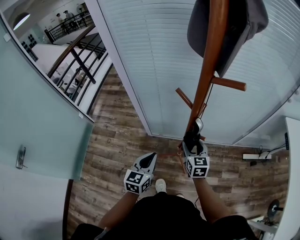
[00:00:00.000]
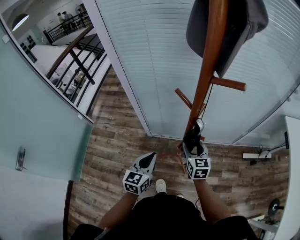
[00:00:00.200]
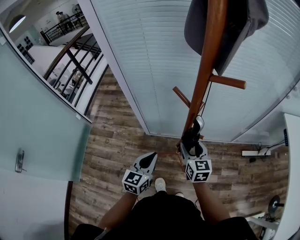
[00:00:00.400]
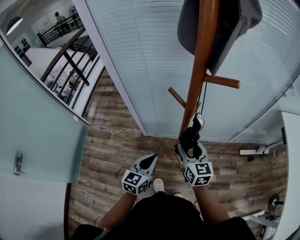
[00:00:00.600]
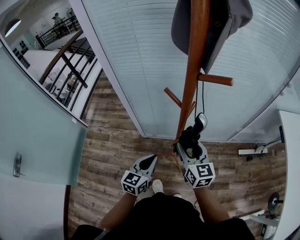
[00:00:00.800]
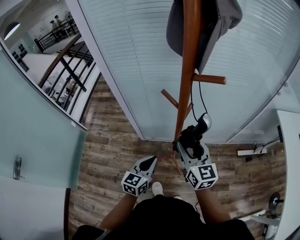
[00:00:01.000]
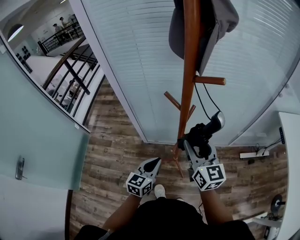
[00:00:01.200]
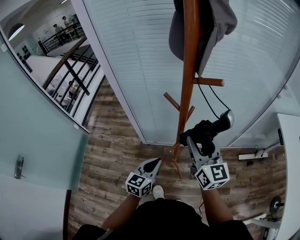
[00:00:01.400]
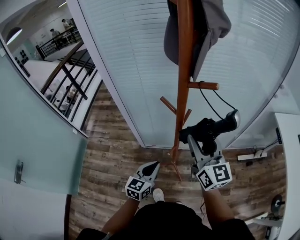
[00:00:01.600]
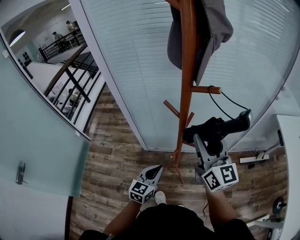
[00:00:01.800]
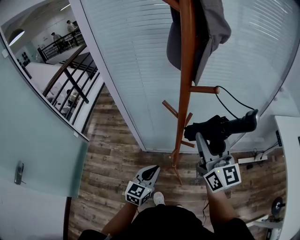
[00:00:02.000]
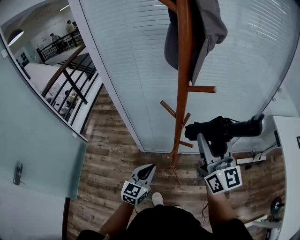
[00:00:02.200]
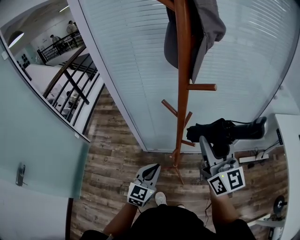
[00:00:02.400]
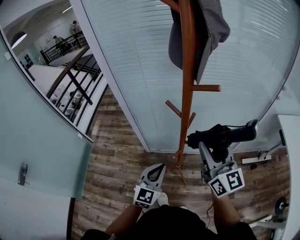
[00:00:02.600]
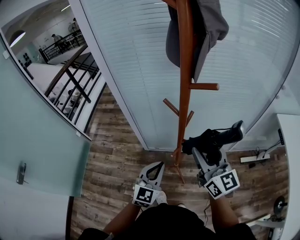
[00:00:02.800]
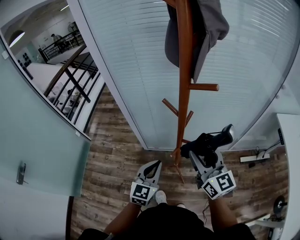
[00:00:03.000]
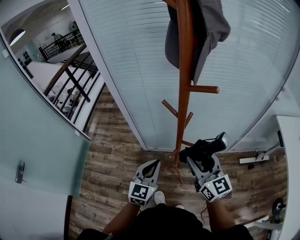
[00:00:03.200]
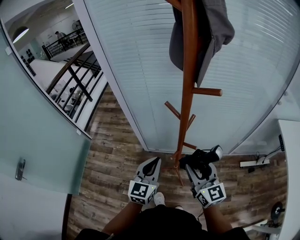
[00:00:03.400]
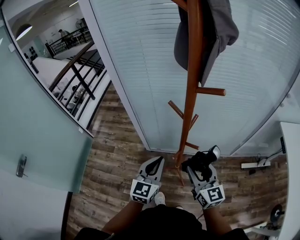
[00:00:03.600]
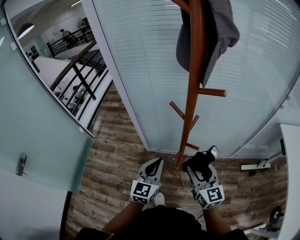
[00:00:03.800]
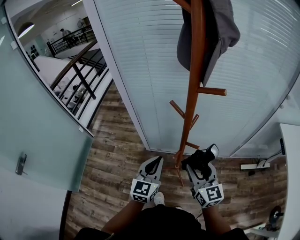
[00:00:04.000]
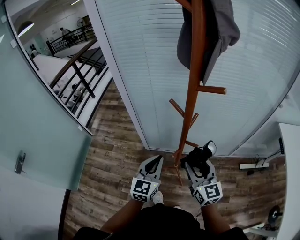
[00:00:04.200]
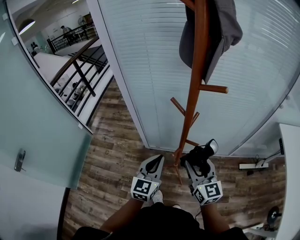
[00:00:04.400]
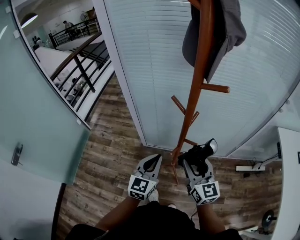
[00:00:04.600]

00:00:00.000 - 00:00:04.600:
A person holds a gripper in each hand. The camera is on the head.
00:00:00.000 - 00:00:01.600: The left gripper moves to the right, approximately 5 cm; the right gripper heads upward, covering some 25 cm, and tips its fingers upward by roughly 30 degrees.
00:00:01.600 - 00:00:03.000: The right gripper moves roughly 5 cm upward and comes back. The left gripper travels upward by about 5 cm.
00:00:03.000 - 00:00:04.600: The right gripper moves downward, about 5 cm.

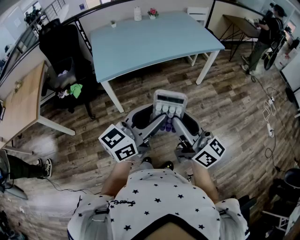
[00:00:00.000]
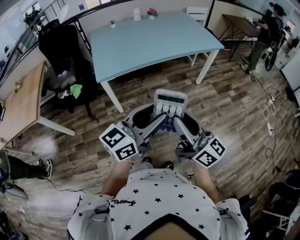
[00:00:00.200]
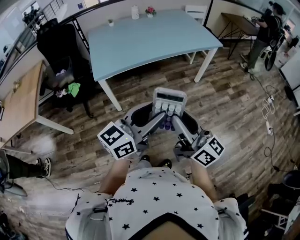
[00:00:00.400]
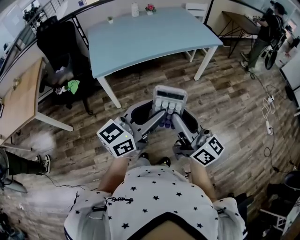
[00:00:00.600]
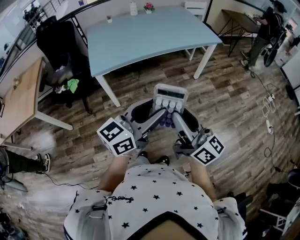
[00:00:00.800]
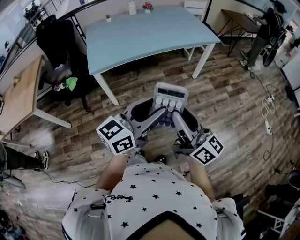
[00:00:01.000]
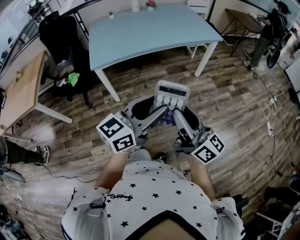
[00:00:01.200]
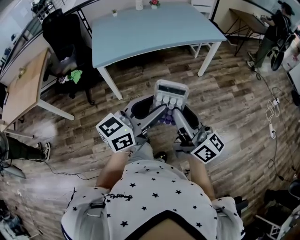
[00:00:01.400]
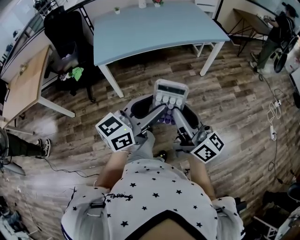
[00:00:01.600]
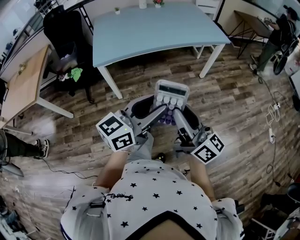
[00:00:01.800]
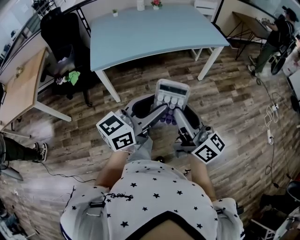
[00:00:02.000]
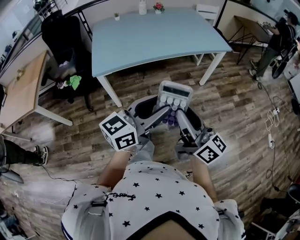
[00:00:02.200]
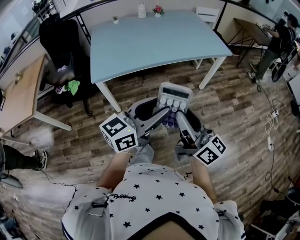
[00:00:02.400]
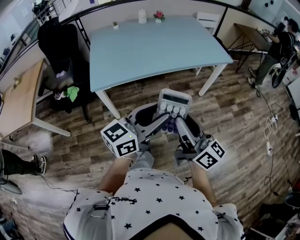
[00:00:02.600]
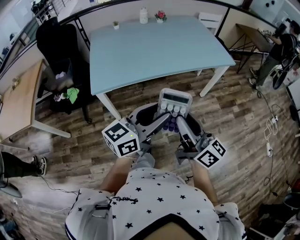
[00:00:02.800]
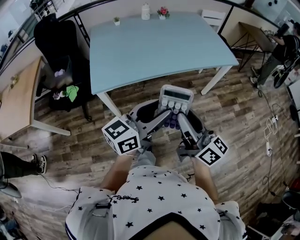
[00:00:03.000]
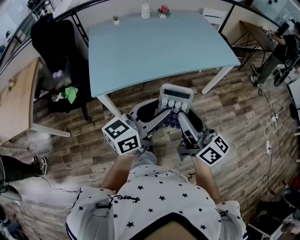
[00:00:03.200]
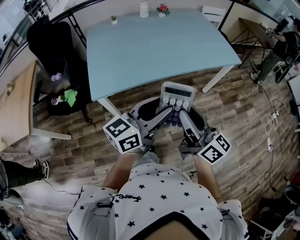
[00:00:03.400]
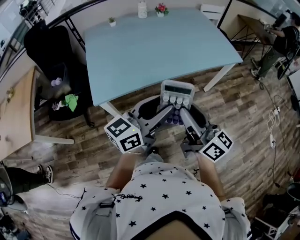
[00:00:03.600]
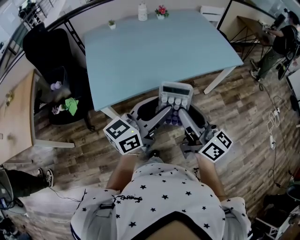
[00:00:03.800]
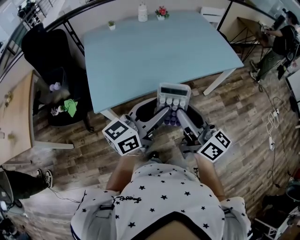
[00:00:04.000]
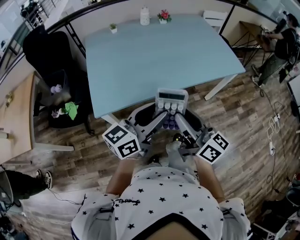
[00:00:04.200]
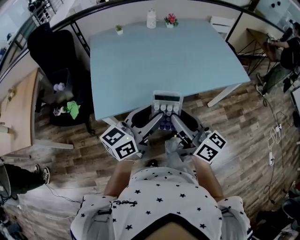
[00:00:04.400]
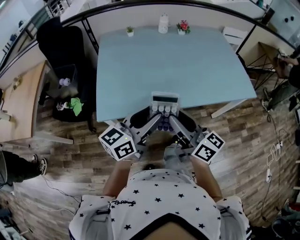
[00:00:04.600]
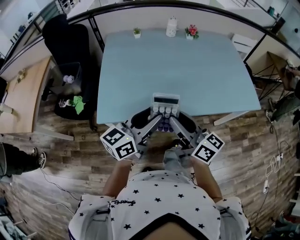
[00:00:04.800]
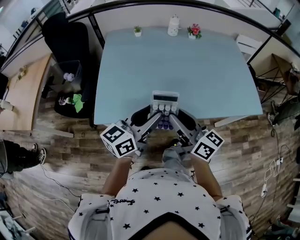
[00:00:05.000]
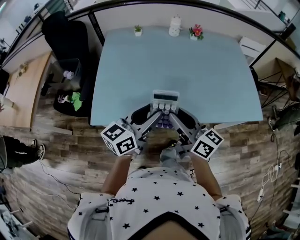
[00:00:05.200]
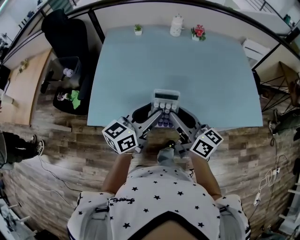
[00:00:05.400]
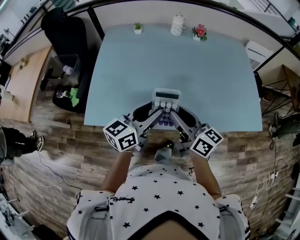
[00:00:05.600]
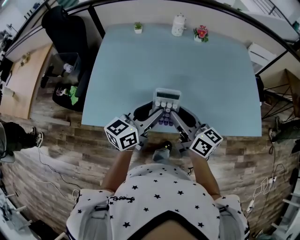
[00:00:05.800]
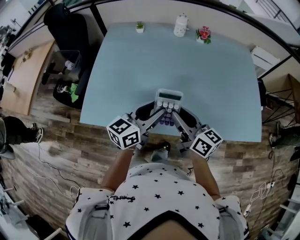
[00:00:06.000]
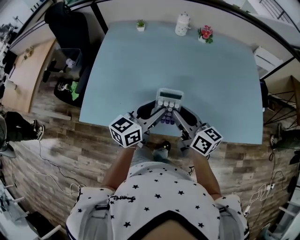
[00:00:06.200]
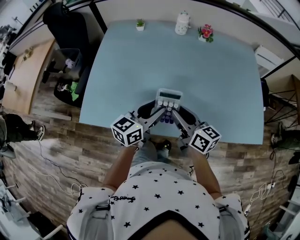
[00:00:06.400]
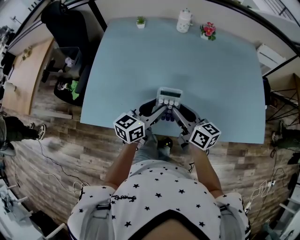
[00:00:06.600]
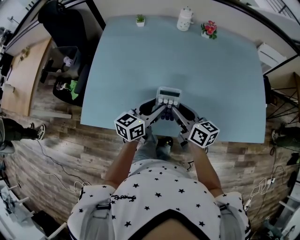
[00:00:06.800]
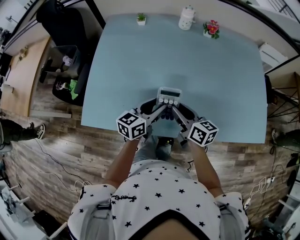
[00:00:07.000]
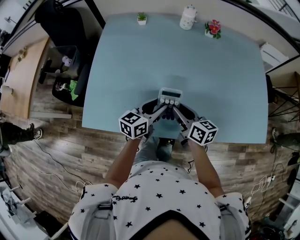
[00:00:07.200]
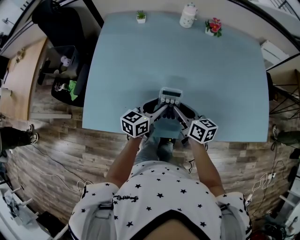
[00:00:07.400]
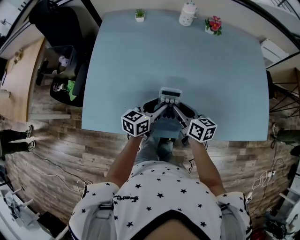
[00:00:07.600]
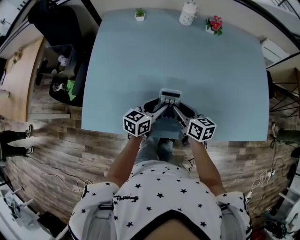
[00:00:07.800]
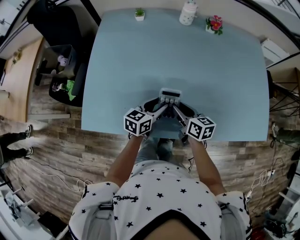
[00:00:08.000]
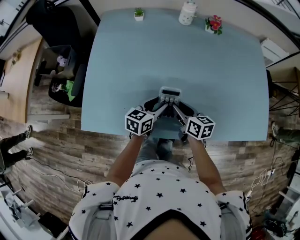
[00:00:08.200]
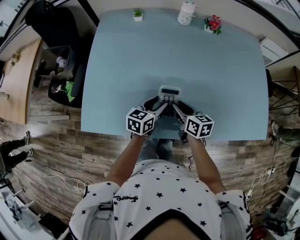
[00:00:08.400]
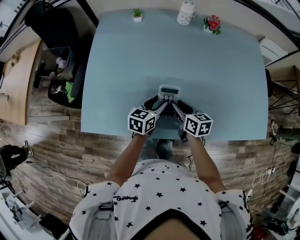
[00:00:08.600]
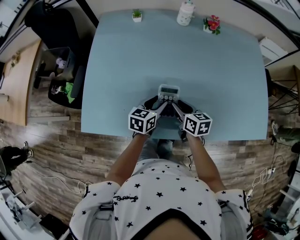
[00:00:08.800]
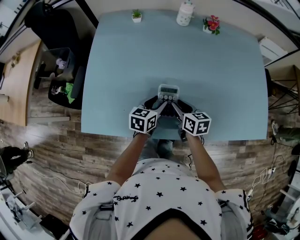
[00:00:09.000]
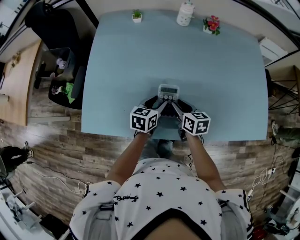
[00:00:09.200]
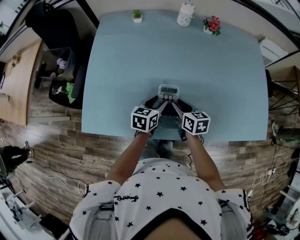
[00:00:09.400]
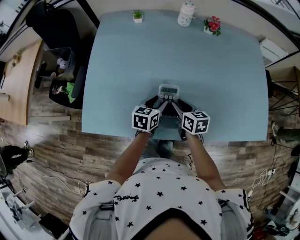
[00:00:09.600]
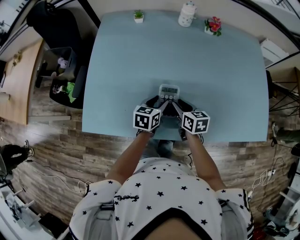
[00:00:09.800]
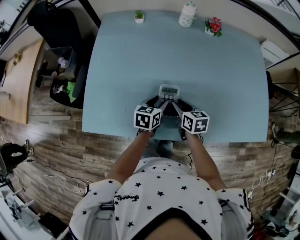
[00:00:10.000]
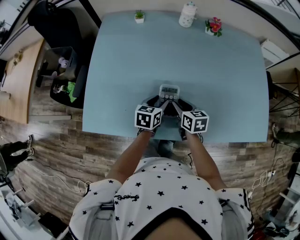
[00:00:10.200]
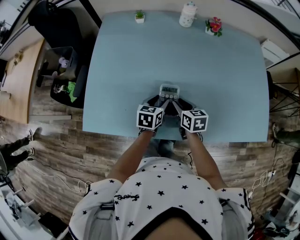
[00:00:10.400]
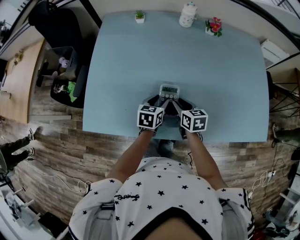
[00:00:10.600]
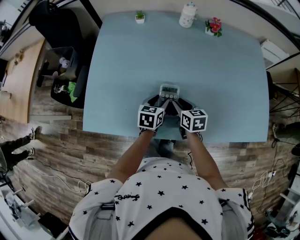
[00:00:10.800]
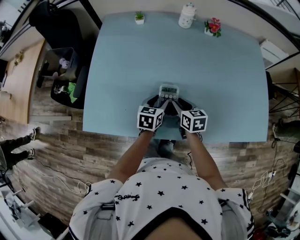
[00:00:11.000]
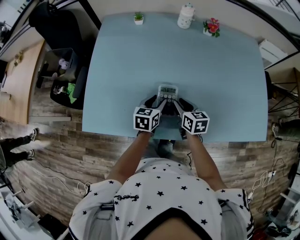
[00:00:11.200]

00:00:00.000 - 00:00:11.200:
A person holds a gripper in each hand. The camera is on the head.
00:00:00.000 - 00:00:01.600: Both grippers move to the right, approximately 5 cm.
00:00:01.600 - 00:00:03.200: The two grippers go approximately 20 cm forward and to the left.
00:00:03.200 - 00:00:04.800: The two grippers go roughly 25 cm forward and to the left.
00:00:04.800 - 00:00:06.400: The grippers both shift forward, to the right and downward by approximately 20 cm.
00:00:06.400 - 00:00:08.000: The two grippers go roughly 15 cm downward and forward. The right gripper turns by approximately 20 degrees.
00:00:08.000 - 00:00:09.600: There are only small adjustments of the grippers.
00:00:09.600 - 00:00:11.200: The grippers make only small movements.

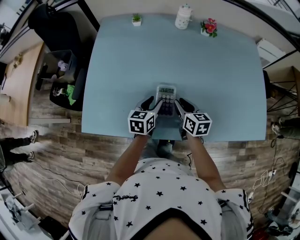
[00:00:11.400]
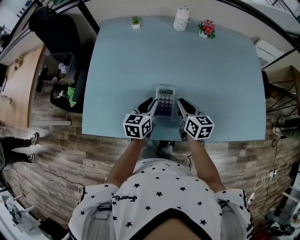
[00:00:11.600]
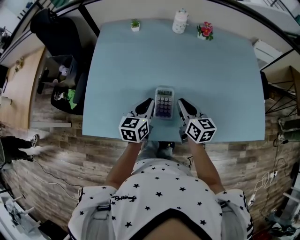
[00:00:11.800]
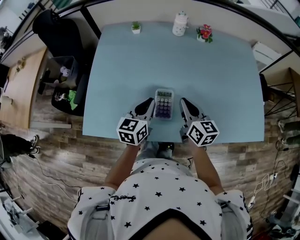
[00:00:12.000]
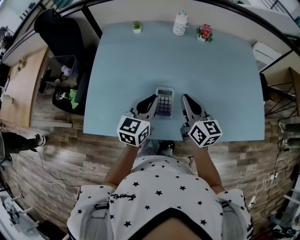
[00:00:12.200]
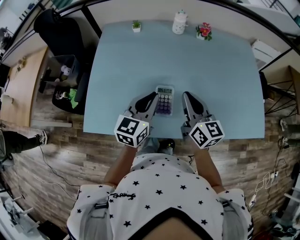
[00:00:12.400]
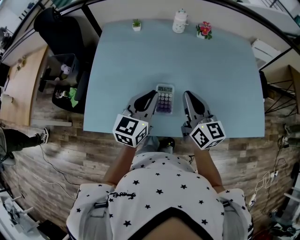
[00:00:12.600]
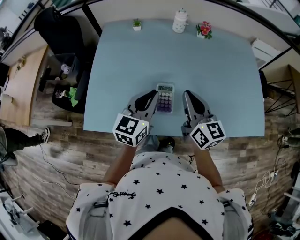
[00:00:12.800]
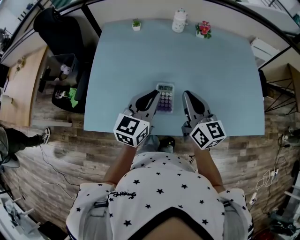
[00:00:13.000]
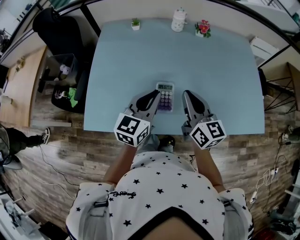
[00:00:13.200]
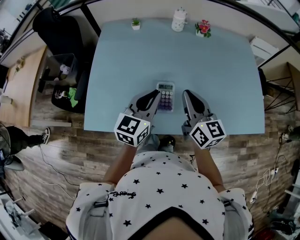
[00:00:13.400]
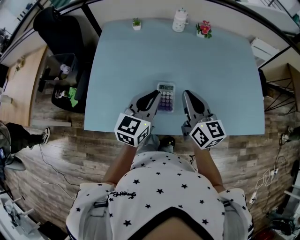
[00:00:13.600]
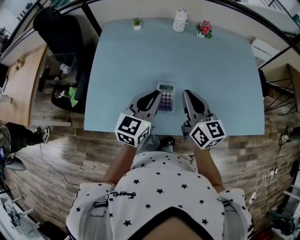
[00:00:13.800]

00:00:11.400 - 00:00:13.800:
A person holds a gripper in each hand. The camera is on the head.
00:00:11.400 - 00:00:12.600: Both grippers travel together upward, about 20 cm. The right gripper changes its angle by about 30 degrees, and closes up. Meanwhile the left gripper turns by approximately 30 degrees, and closes up.
00:00:12.600 - 00:00:13.800: Both grippers stay put.

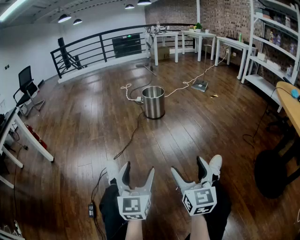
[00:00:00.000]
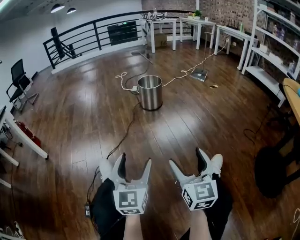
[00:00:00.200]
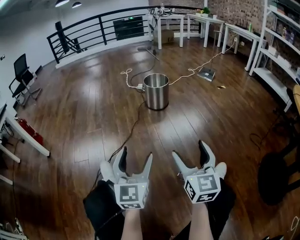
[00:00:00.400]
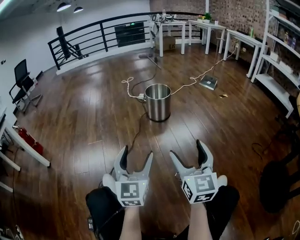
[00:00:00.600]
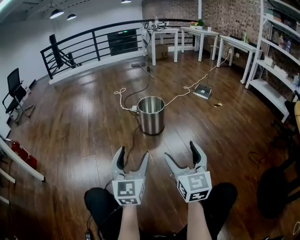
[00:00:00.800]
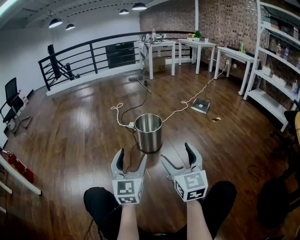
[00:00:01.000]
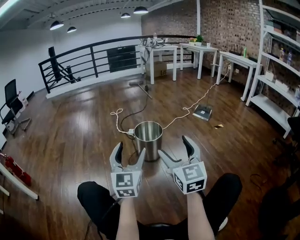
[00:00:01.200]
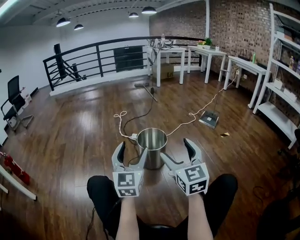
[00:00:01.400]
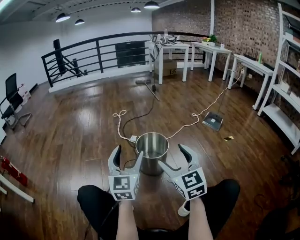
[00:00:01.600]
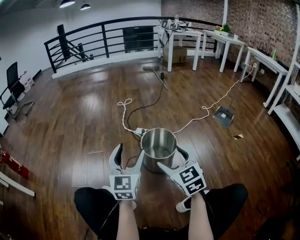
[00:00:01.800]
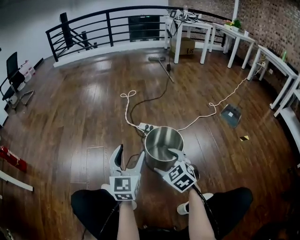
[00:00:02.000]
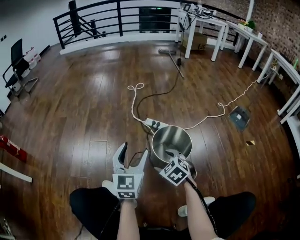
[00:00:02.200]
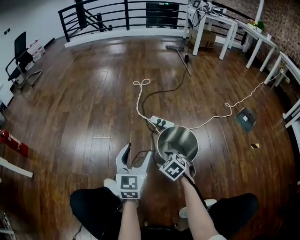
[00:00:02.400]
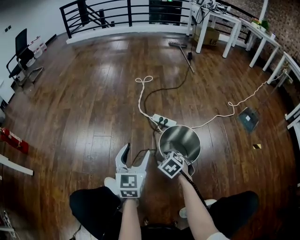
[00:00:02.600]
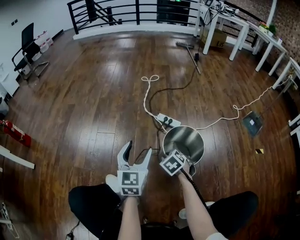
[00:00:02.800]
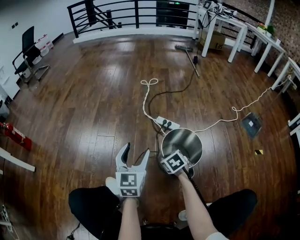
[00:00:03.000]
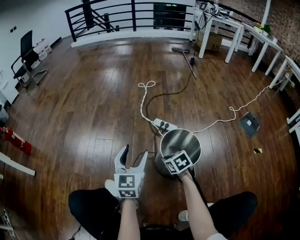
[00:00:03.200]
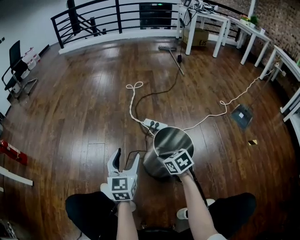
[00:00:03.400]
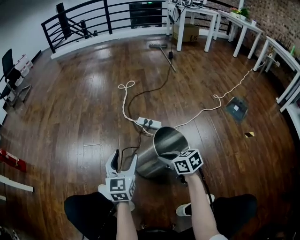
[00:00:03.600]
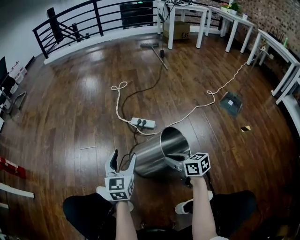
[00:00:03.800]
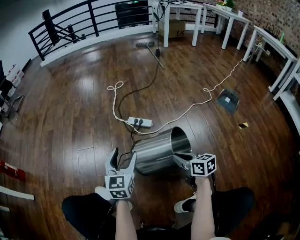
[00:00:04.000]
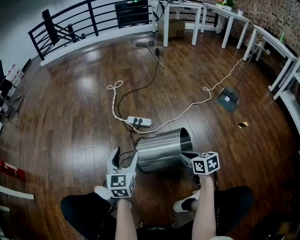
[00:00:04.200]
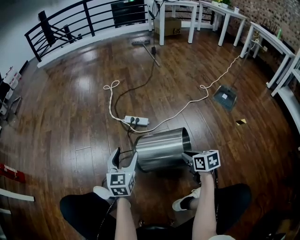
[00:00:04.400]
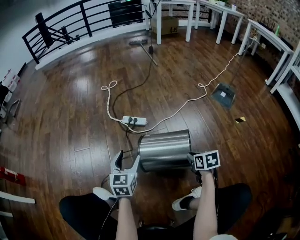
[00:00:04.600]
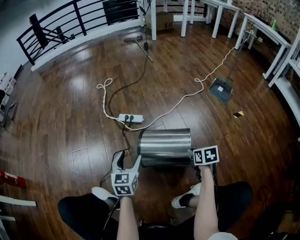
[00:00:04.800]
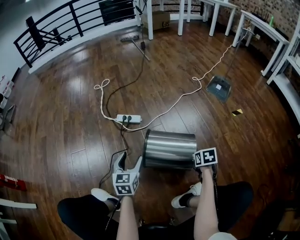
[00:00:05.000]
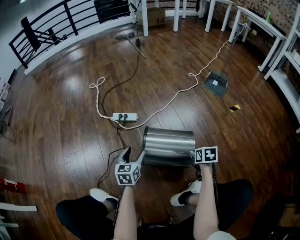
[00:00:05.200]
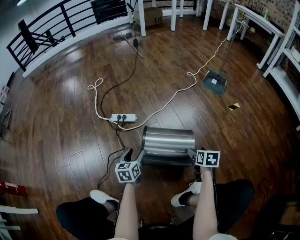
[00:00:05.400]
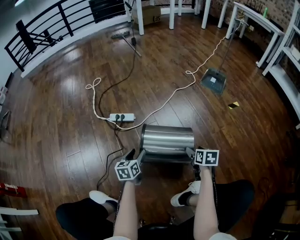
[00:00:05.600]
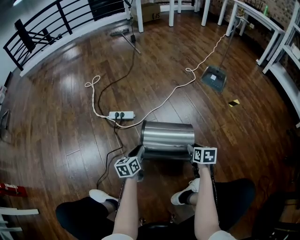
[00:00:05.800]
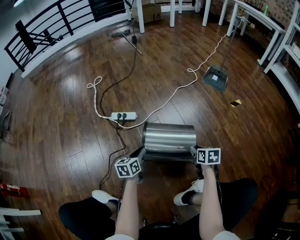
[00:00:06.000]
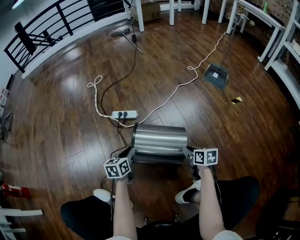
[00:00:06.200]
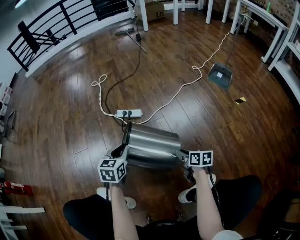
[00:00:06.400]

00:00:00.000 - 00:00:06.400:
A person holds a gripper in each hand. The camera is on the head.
00:00:00.000 - 00:00:01.600: The two grippers travel together, forward, roughly 70 cm. The right gripper changes its angle by some 20 degrees.
00:00:01.600 - 00:00:03.200: The right gripper shifts roughly 30 cm downward, angles its fingers downward, by approximately 50 degrees, and closes up; the left gripper shifts by roughly 25 cm, and rotates about 20 degrees.
00:00:03.200 - 00:00:04.800: The right gripper moves about 5 cm upward and comes back, and turns by approximately 40 degrees. Meanwhile the left gripper moves about 15 cm, and rotates roughly 20 degrees.
00:00:04.800 - 00:00:06.400: The right gripper shifts approximately 10 cm to the left and downward, swivels approximately 30 degrees, and opens and closes again; the left gripper travels downward and back again, approximately 15 cm each way, and closes.
